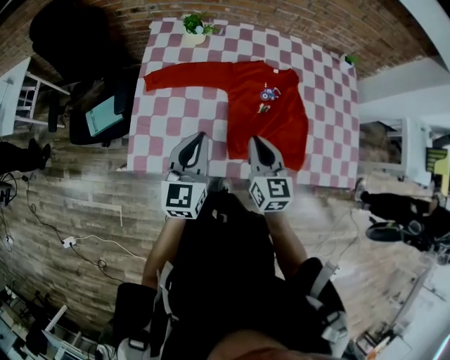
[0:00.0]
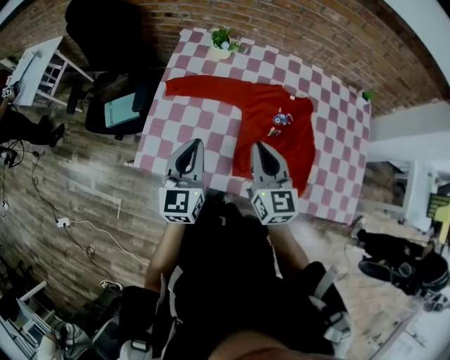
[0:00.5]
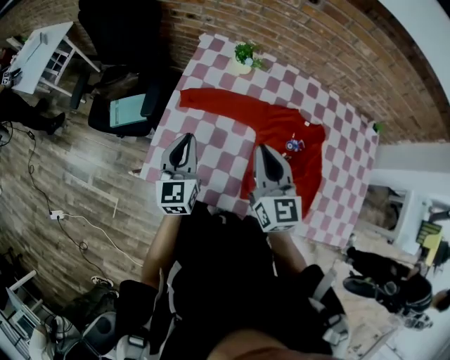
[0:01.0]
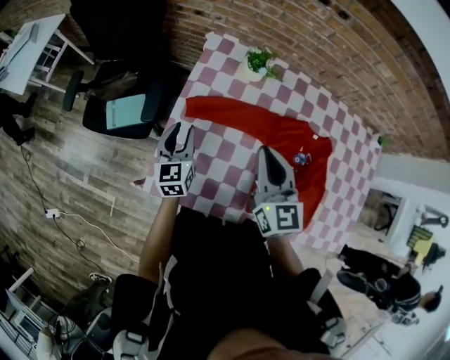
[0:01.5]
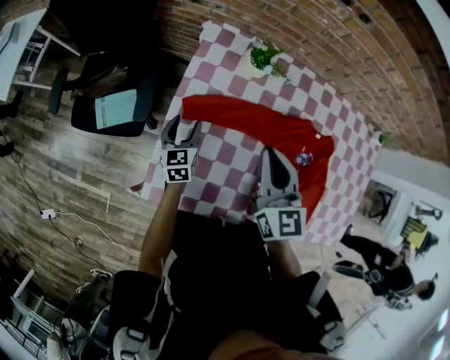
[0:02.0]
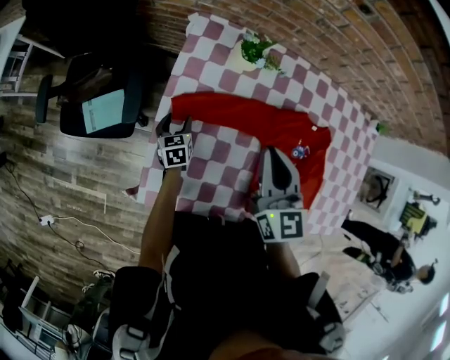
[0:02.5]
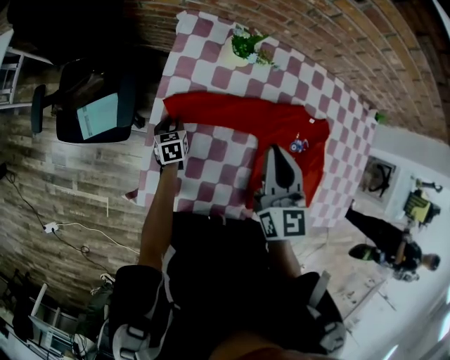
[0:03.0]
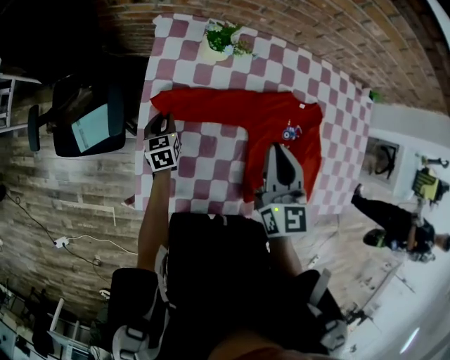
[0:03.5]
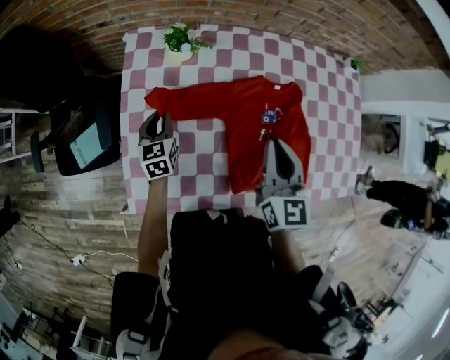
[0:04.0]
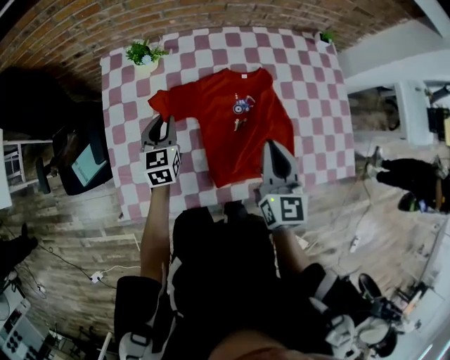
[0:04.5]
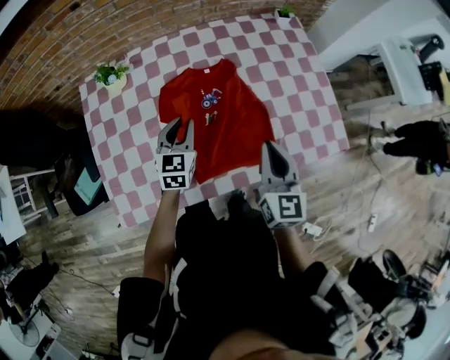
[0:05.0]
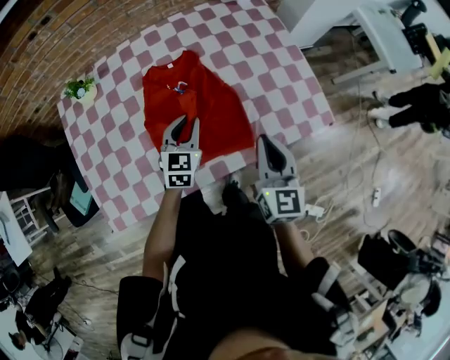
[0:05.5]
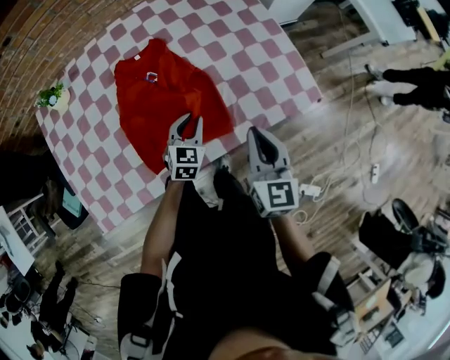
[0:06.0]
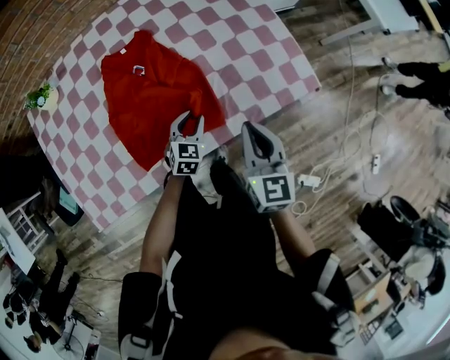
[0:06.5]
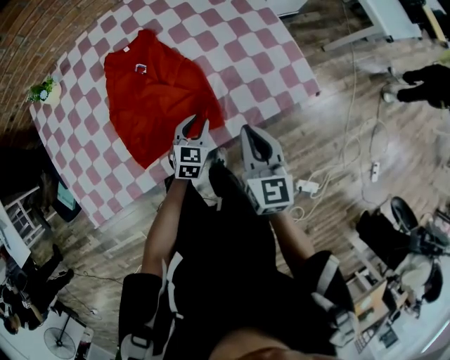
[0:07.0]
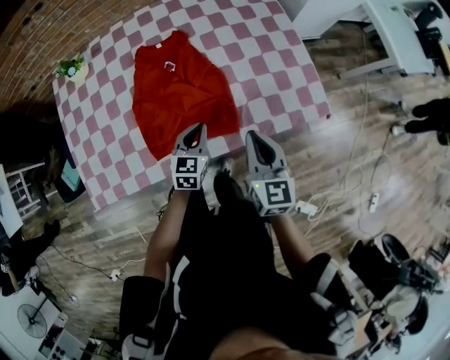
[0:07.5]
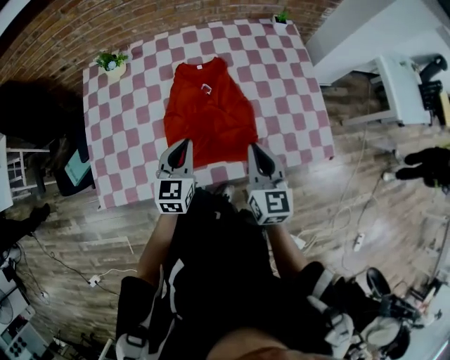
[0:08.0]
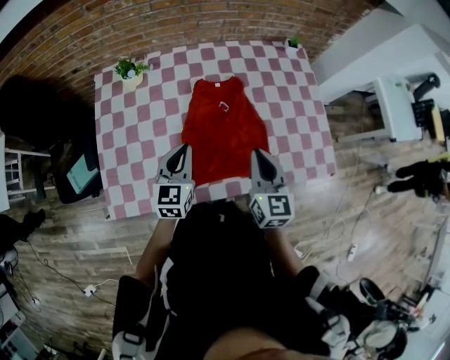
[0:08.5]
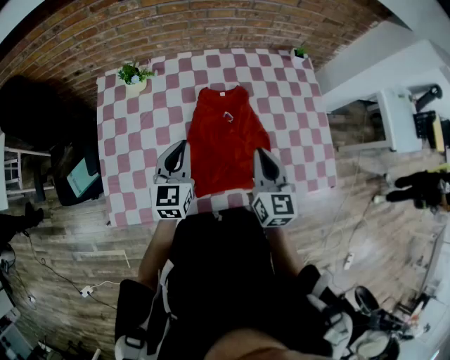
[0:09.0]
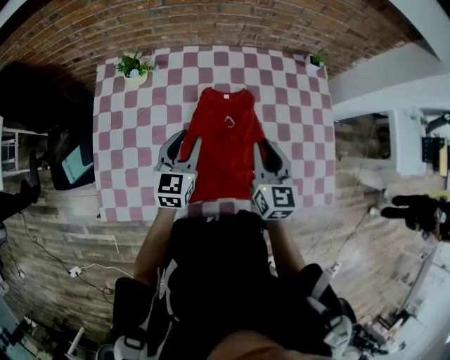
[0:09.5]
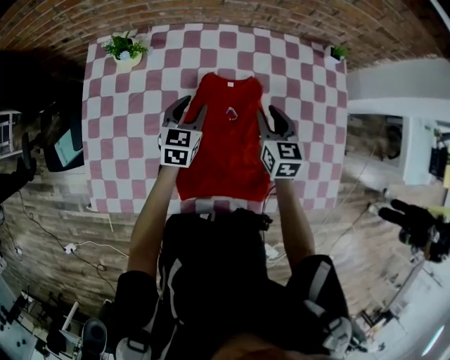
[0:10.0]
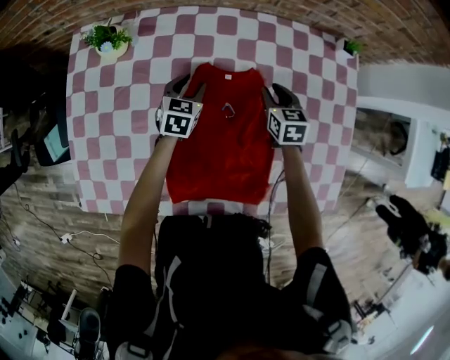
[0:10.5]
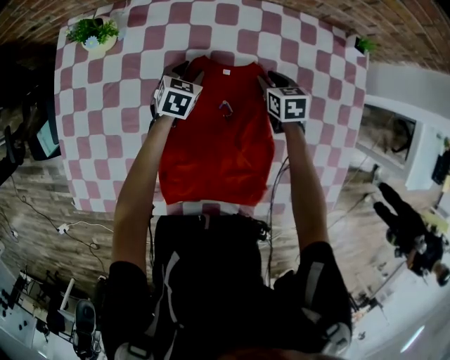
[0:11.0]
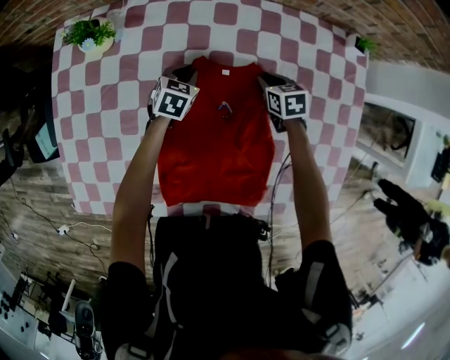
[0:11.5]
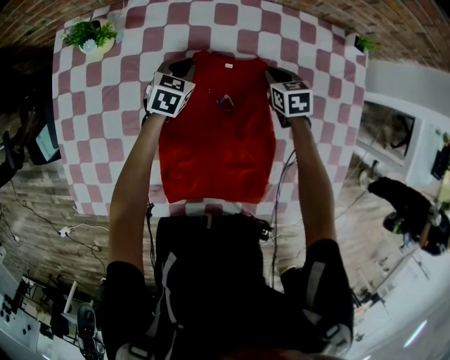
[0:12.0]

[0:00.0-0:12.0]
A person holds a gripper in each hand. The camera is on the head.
0:00.0 to 0:02.0: The left gripper travels forward, downward and to the left by approximately 40 cm, rotates some 30 degrees, and opens up. The right gripper travels forward and to the left by about 30 cm.
0:02.0 to 0:04.0: The right gripper is displaced to the right by roughly 20 cm, and swivels roughly 20 degrees. Meanwhile the left gripper shifts roughly 10 cm to the right, goes downward and returns, approximately 15 cm each way, and closes its fingers.
0:04.0 to 0:06.0: The pair of grippers is taken some 50 cm. The left gripper turns by some 50 degrees. Meanwhile the right gripper rotates some 20 degrees.
0:06.0 to 0:08.0: The left gripper is displaced upward, to the left and backward by some 20 cm, and rotates approximately 30 degrees, while the right gripper is displaced to the left by some 10 cm.
0:08.0 to 0:10.0: The left gripper moves forward, some 25 cm, and opens up. Meanwhile the right gripper travels forward and downward by approximately 35 cm, and opens its fingers.
0:10.0 to 0:12.0: The two grippers go some 20 cm downward and forward. The right gripper rotates roughly 30 degrees. Meanwhile the left gripper closes.

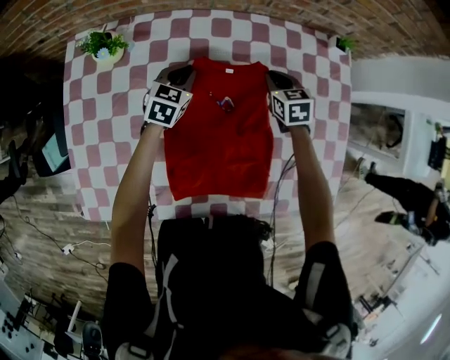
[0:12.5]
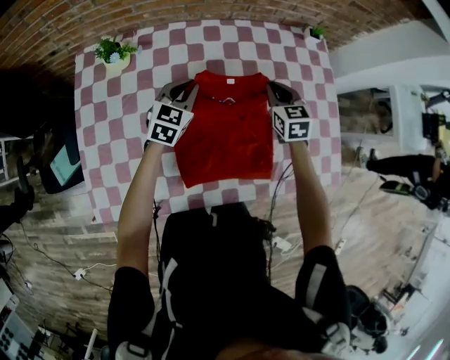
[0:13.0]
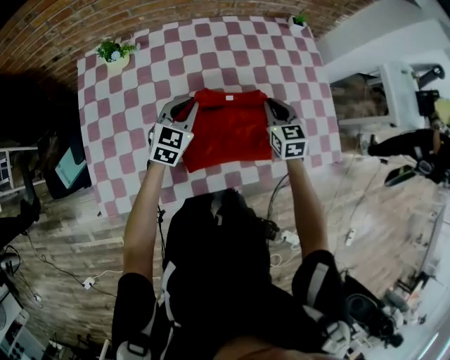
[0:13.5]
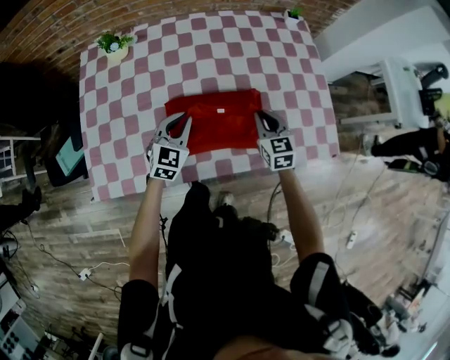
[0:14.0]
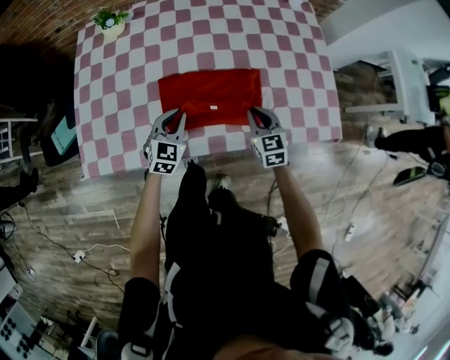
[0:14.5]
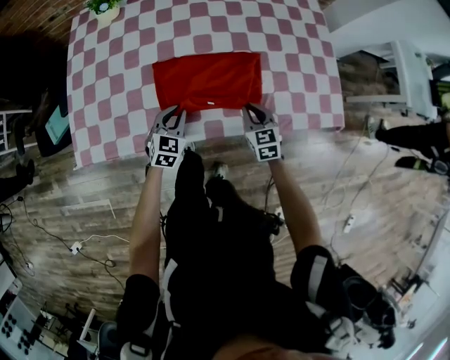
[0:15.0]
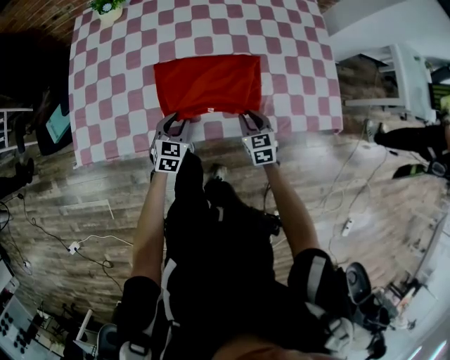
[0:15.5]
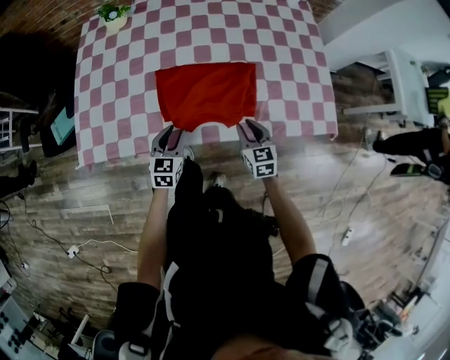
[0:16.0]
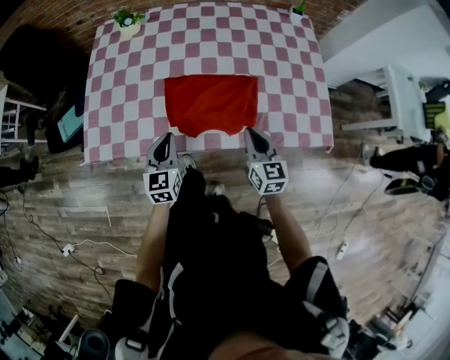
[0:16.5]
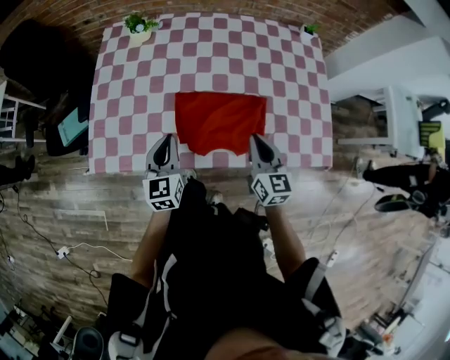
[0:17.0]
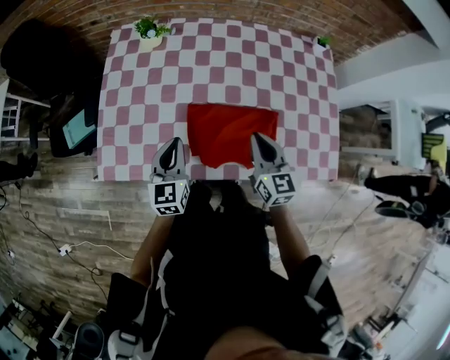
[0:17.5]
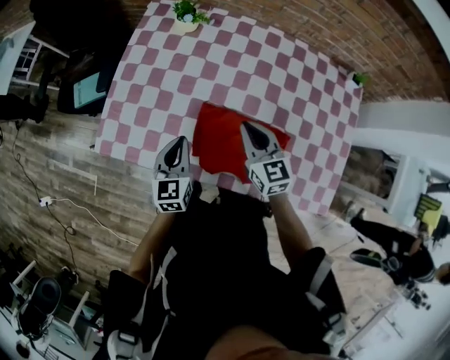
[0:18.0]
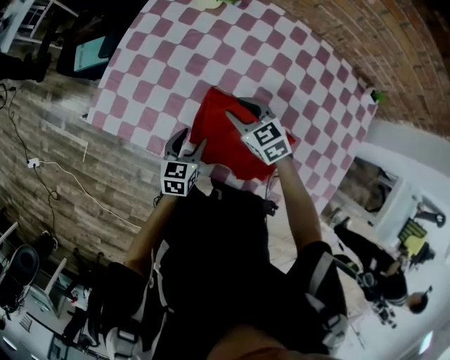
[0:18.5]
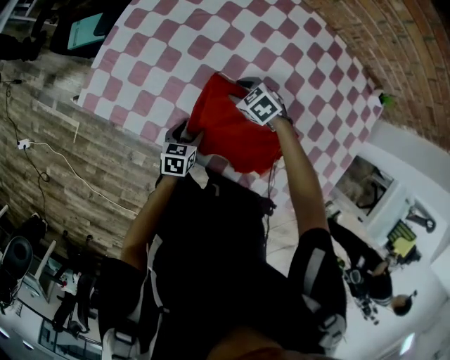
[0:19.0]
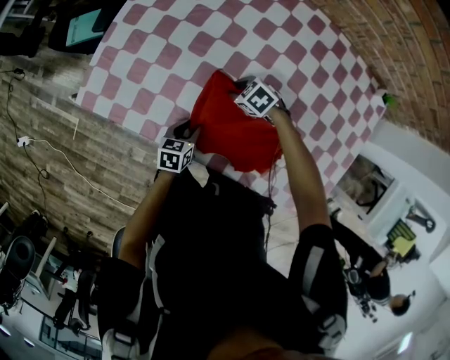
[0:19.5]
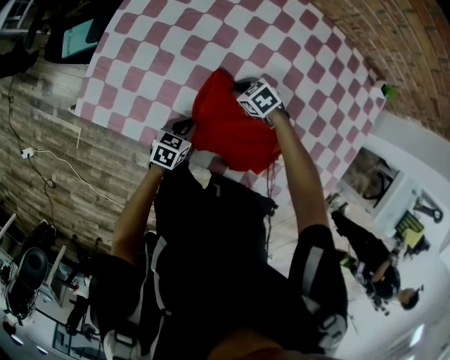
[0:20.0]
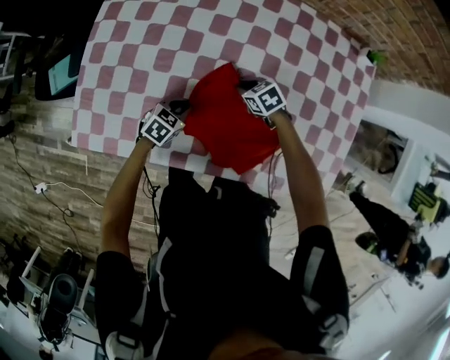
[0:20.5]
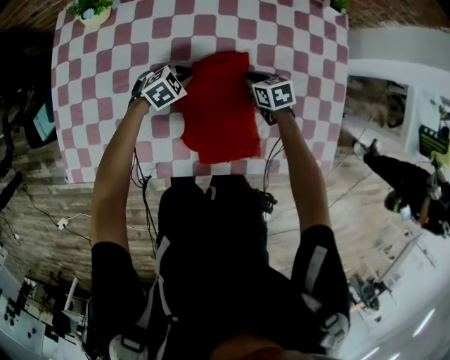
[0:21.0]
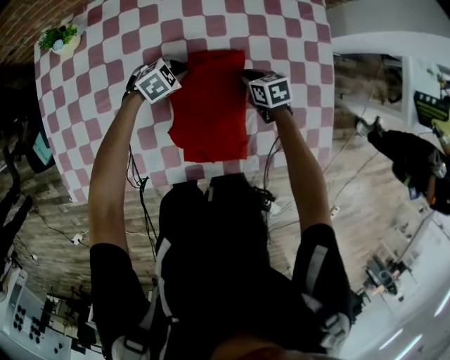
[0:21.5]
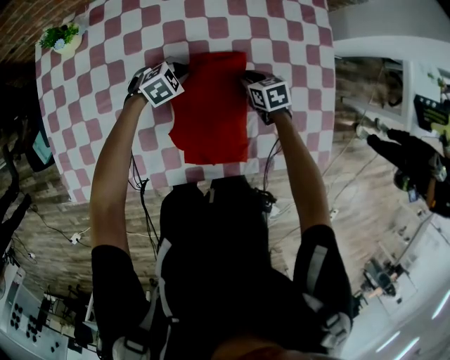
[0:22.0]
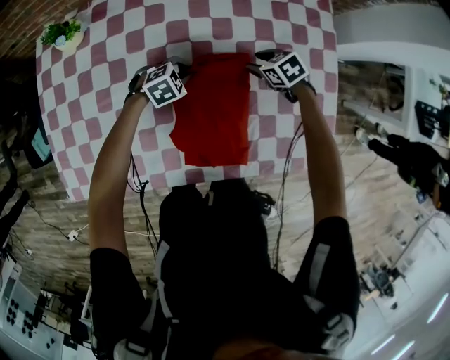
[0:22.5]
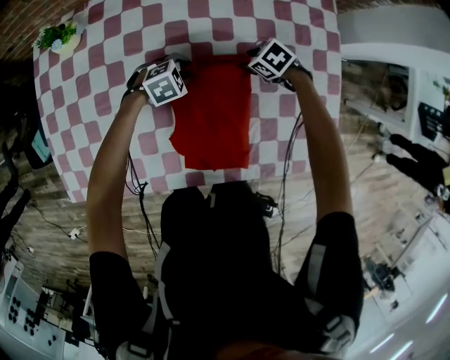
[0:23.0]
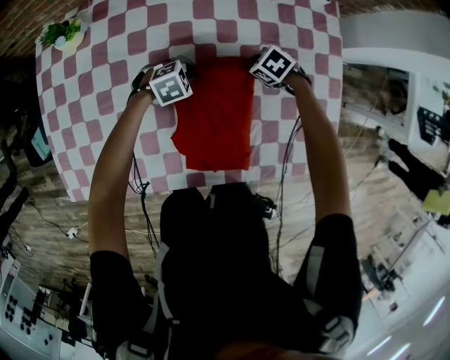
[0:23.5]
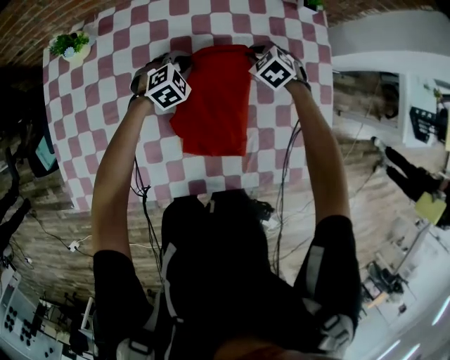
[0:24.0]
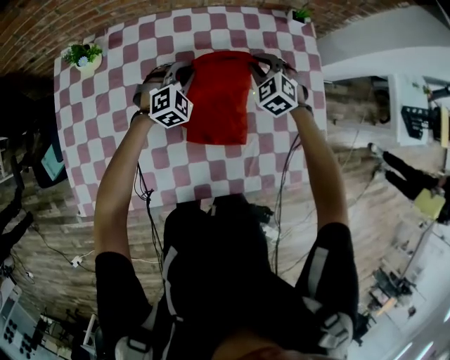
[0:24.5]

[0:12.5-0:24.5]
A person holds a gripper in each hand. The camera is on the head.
0:12.5 to 0:14.5: The grippers both shift backward by about 40 cm.
0:14.5 to 0:16.5: Both grippers travel together backward and upward, about 15 cm. The left gripper turns by approximately 30 degrees, and opens, then closes again.
0:16.5 to 0:18.5: The left gripper changes place by about 15 cm, turns by approximately 30 degrees, and opens its fingers; the right gripper moves roughly 10 cm upward and comes back, turns by roughly 60 degrees, and opens.
0:18.5 to 0:20.5: The right gripper shifts approximately 15 cm downward, turns by some 30 degrees, and closes up. Meanwhile the left gripper goes about 10 cm downward, turns by approximately 50 degrees, and closes.
0:20.5 to 0:22.5: The left gripper ends up roughly 25 cm from where it was, and rolls clockwise, seen from behind, by roughly 40 degrees. Meanwhile the right gripper shifts by approximately 25 cm, and opens its fingers.
0:22.5 to 0:24.5: Both grippers travel together upward, approximately 15 cm. The right gripper swivels about 40 degrees, and closes, while the left gripper rotates roughly 40 degrees.

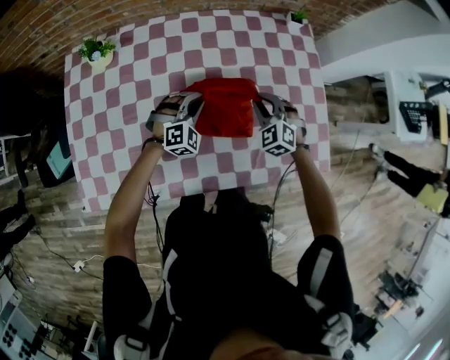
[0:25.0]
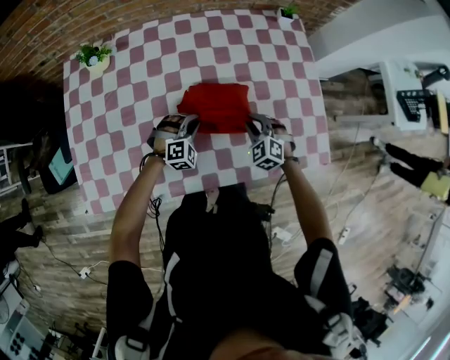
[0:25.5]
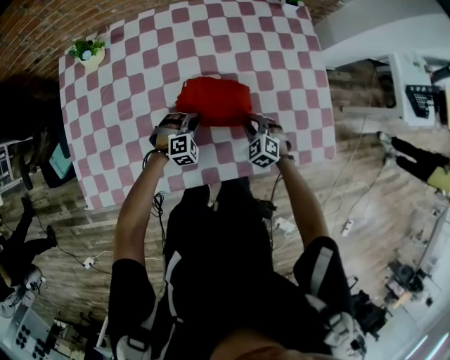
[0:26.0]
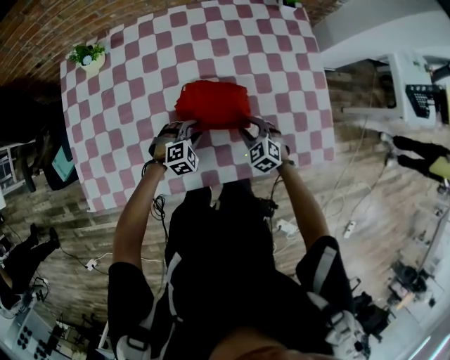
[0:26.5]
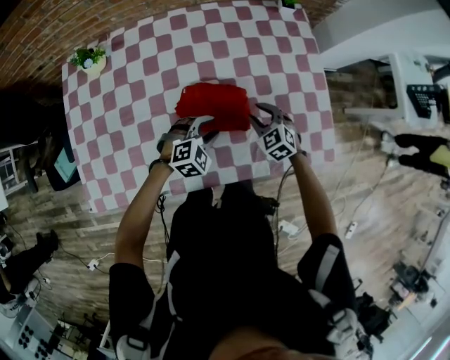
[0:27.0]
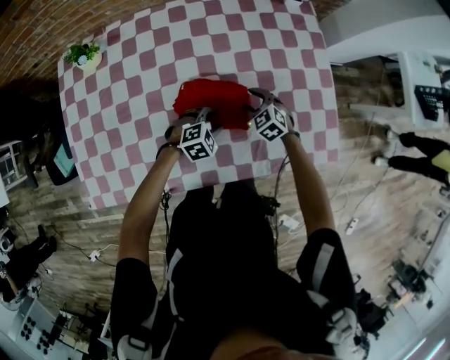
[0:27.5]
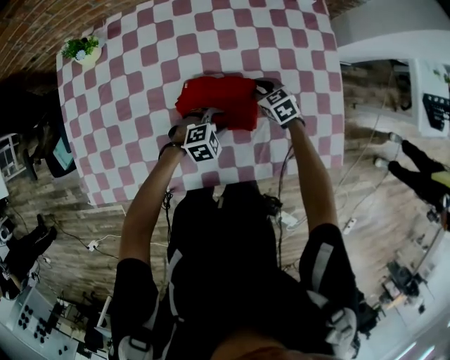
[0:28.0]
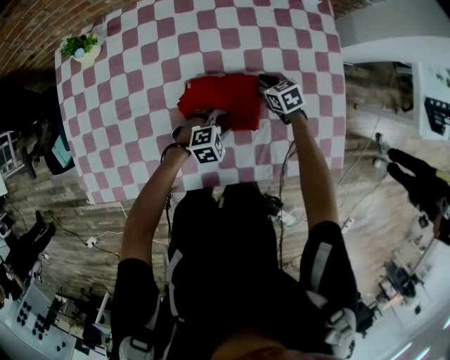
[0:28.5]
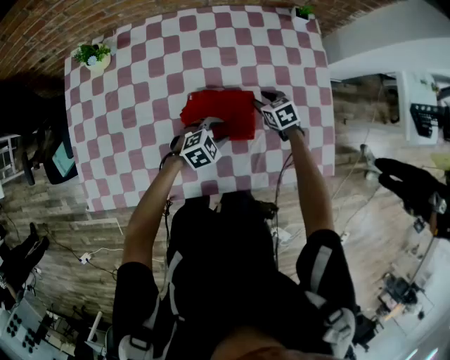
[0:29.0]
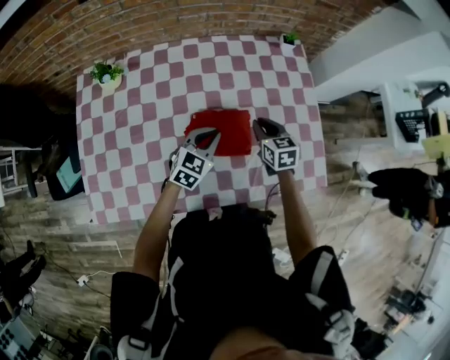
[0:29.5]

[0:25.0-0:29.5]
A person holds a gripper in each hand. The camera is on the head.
0:25.0 to 0:27.0: The left gripper is displaced backward and to the right by approximately 15 cm, travels downward and back again, about 15 cm each way, rotates about 20 degrees, and opens. Meanwhile the right gripper travels backward and downward by approximately 10 cm, and swivels roughly 20 degrees.
0:27.0 to 0:29.5: The grippers both shift upward and forward by approximately 10 cm. The left gripper turns by roughly 40 degrees, and closes up; the right gripper changes its angle by some 40 degrees.
